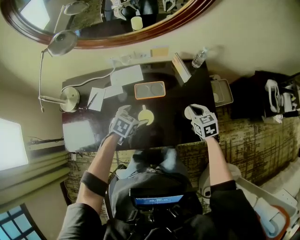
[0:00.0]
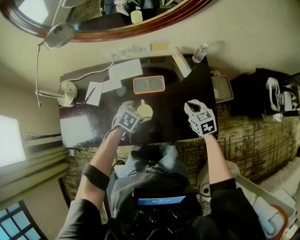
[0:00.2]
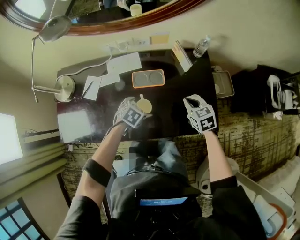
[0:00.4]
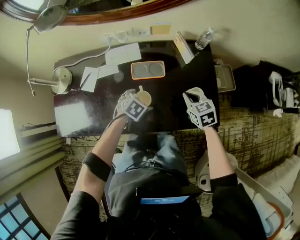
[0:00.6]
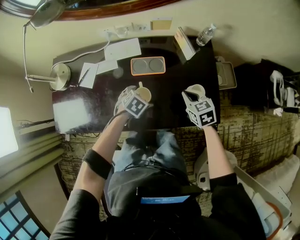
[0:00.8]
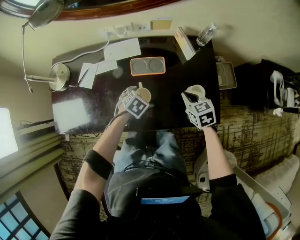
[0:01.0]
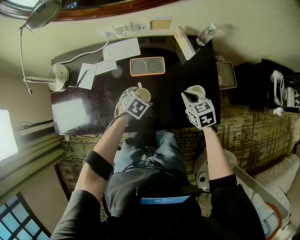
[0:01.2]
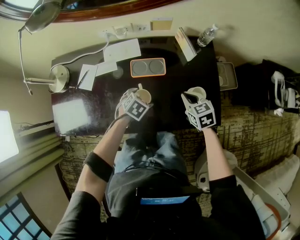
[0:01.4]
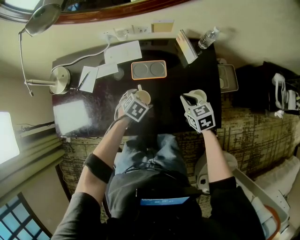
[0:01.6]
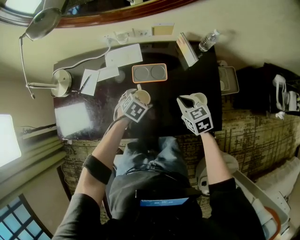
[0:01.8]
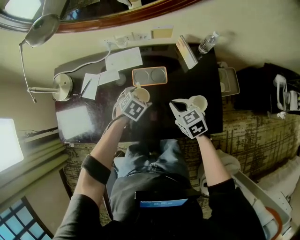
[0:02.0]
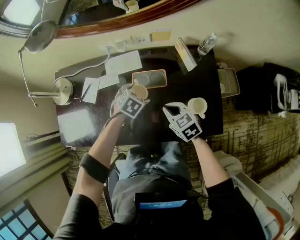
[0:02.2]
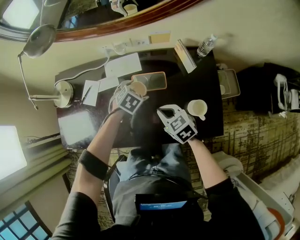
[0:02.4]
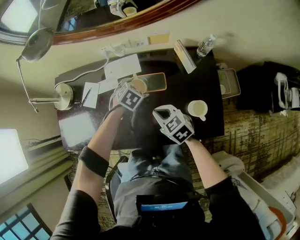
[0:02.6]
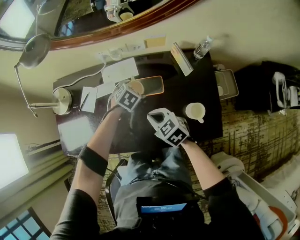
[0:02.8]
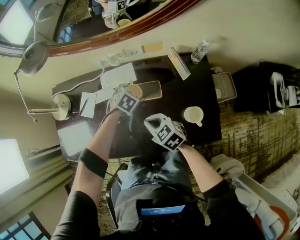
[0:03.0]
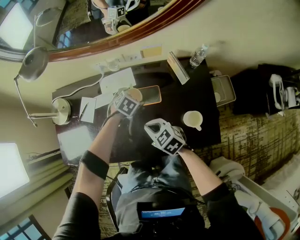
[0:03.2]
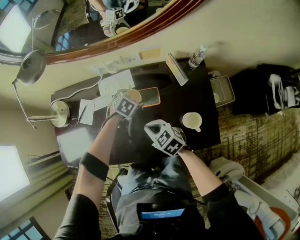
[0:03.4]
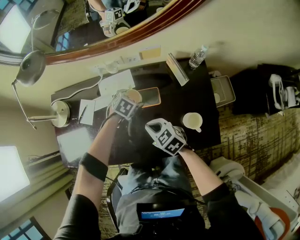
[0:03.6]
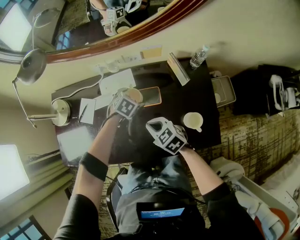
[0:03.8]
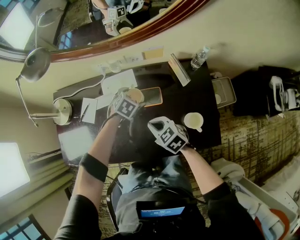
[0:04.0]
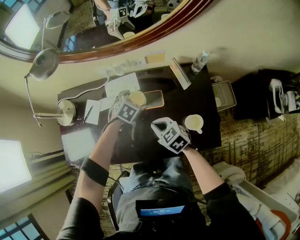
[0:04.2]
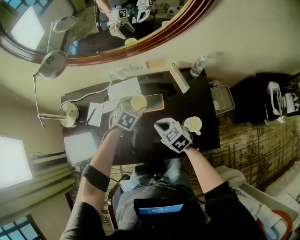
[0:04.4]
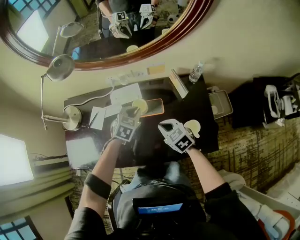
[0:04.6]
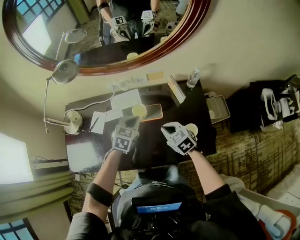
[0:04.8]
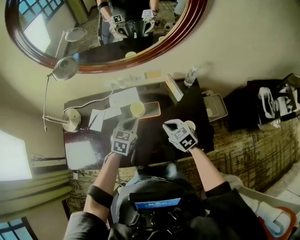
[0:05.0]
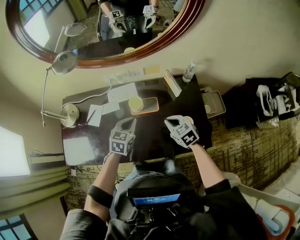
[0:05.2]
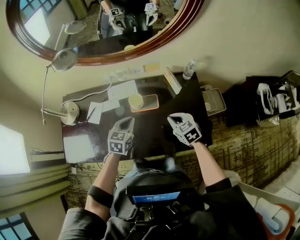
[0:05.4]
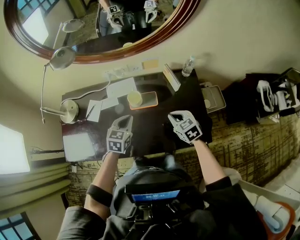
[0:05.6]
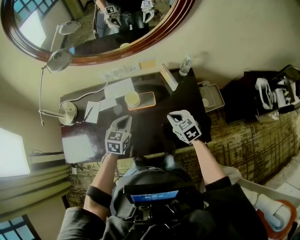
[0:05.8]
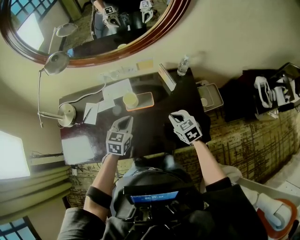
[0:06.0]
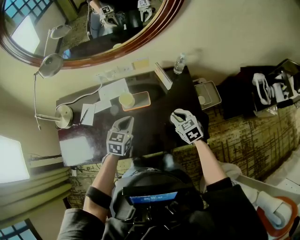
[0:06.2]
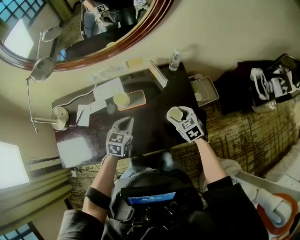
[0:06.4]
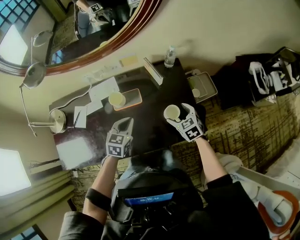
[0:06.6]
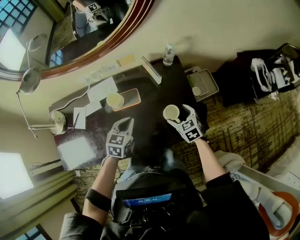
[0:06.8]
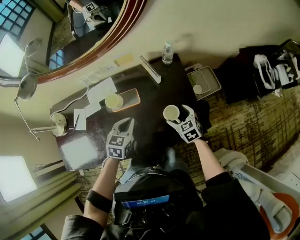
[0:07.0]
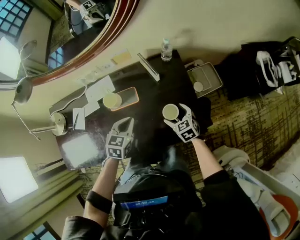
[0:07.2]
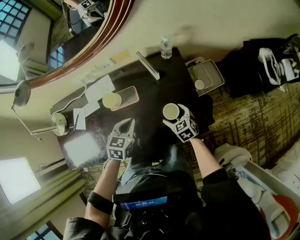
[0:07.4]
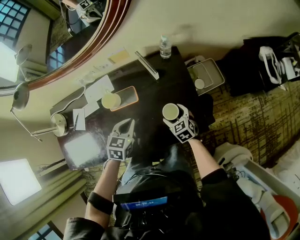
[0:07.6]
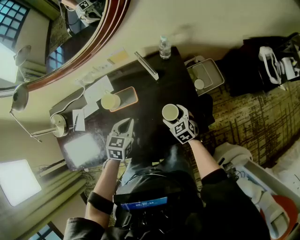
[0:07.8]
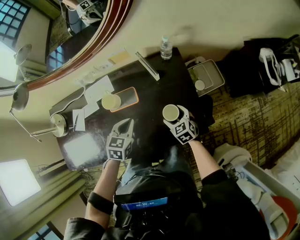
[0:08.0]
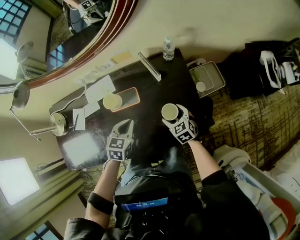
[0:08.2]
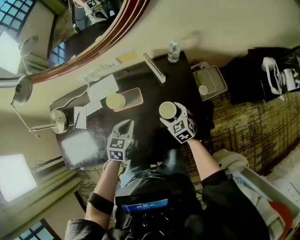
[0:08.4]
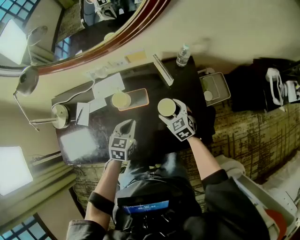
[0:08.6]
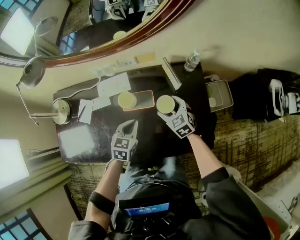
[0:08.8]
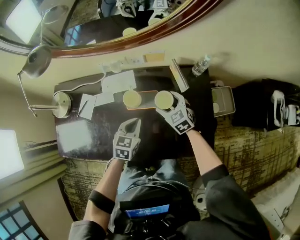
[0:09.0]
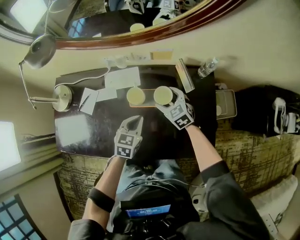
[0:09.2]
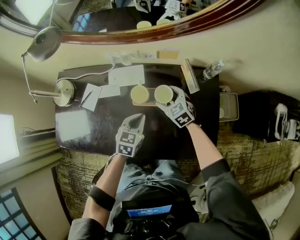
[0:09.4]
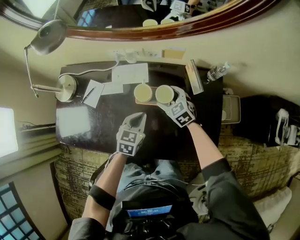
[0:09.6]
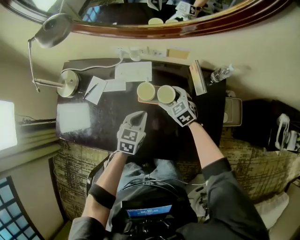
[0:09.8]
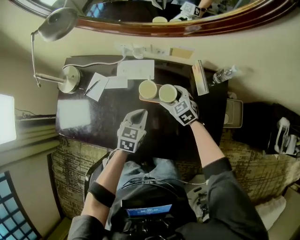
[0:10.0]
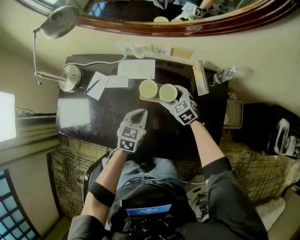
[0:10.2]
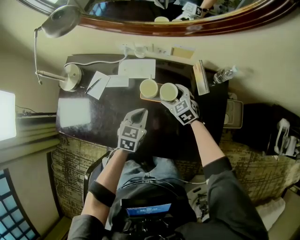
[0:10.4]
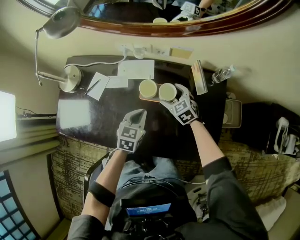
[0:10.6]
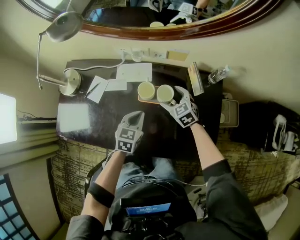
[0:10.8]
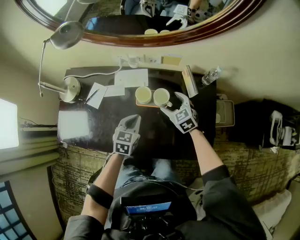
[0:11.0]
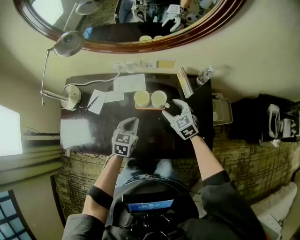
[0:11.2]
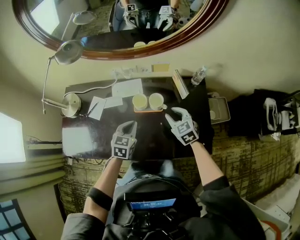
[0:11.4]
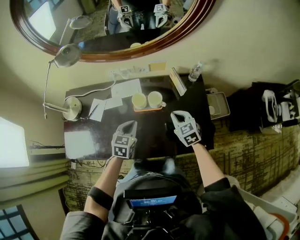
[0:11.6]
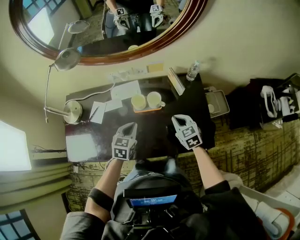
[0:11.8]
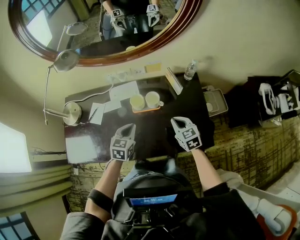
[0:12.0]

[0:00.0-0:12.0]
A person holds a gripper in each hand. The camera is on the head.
0:00.0 to 0:01.6: The left gripper goes approximately 10 cm downward; the right gripper ends up about 5 cm from where it was.
0:01.6 to 0:03.0: The right gripper is displaced to the left by roughly 15 cm, and turns by approximately 20 degrees. The left gripper goes roughly 15 cm forward.
0:03.0 to 0:04.4: The left gripper is displaced upward by some 10 cm.
0:04.4 to 0:06.0: The right gripper shifts about 15 cm to the right. Meanwhile the left gripper shifts approximately 15 cm backward and upward, changes its angle by some 30 degrees, and closes its fingers.
0:06.0 to 0:07.6: The left gripper is displaced to the right and downward by roughly 10 cm, while the right gripper travels downward and to the right by roughly 15 cm, and opens.
0:07.6 to 0:09.0: The left gripper goes roughly 5 cm to the left; the right gripper goes some 20 cm to the left, forward and upward, and changes its angle by about 20 degrees.
0:09.0 to 0:10.4: The right gripper moves to the left, some 5 cm.
0:10.4 to 0:12.0: The left gripper goes about 10 cm upward and backward, while the right gripper heads backward, upward and to the right, covering roughly 20 cm, turns by approximately 30 degrees, and closes.

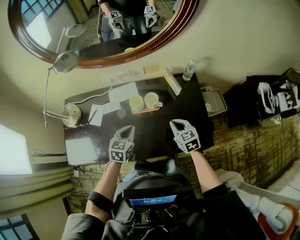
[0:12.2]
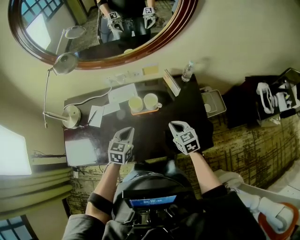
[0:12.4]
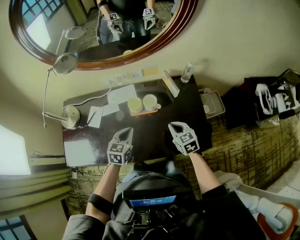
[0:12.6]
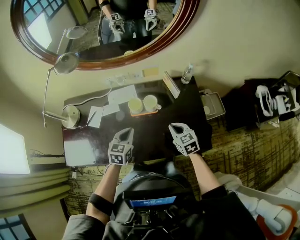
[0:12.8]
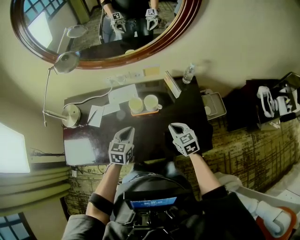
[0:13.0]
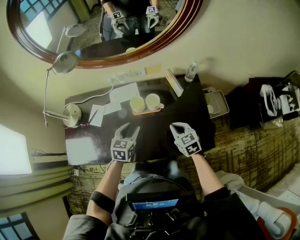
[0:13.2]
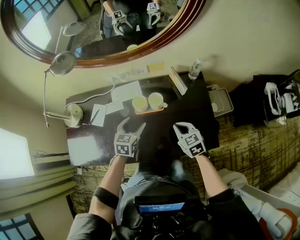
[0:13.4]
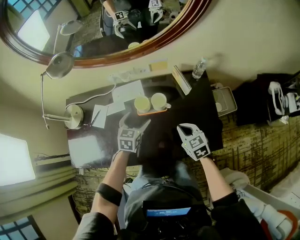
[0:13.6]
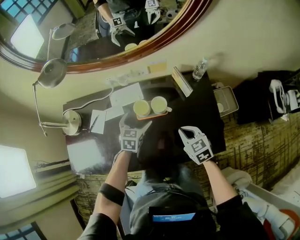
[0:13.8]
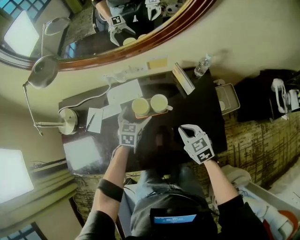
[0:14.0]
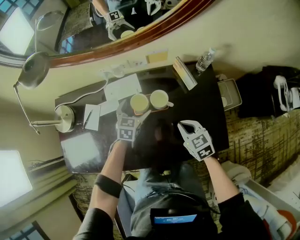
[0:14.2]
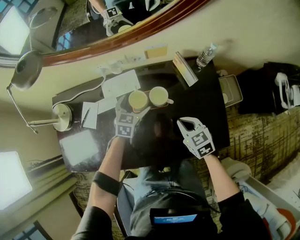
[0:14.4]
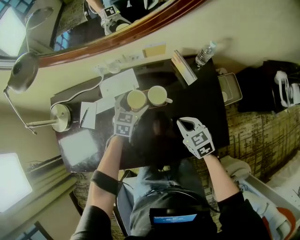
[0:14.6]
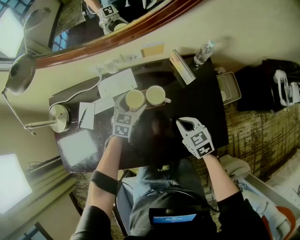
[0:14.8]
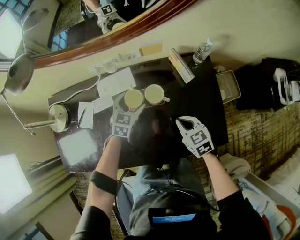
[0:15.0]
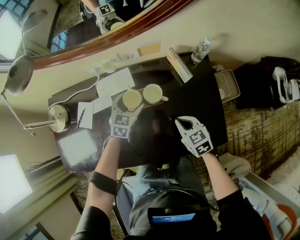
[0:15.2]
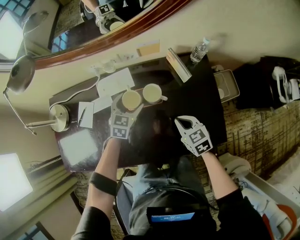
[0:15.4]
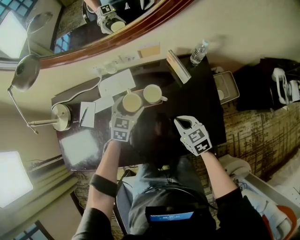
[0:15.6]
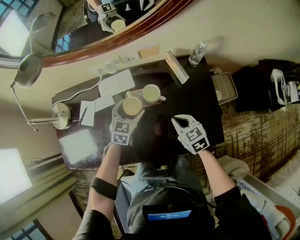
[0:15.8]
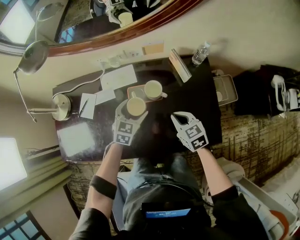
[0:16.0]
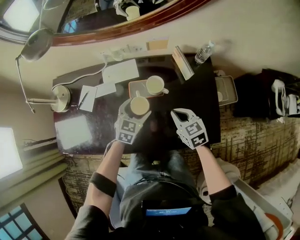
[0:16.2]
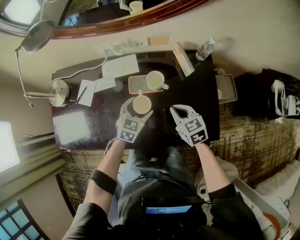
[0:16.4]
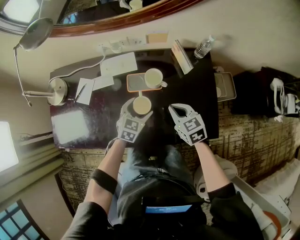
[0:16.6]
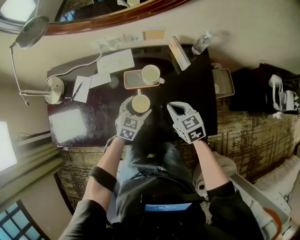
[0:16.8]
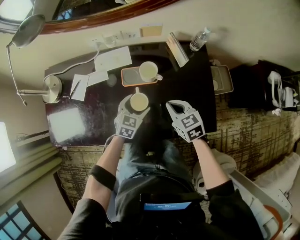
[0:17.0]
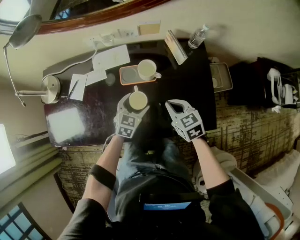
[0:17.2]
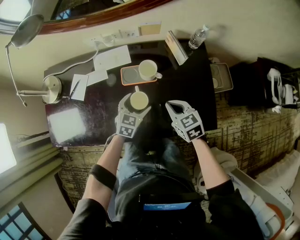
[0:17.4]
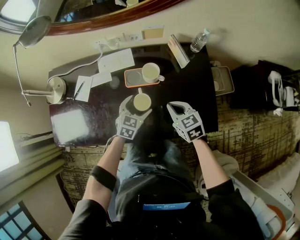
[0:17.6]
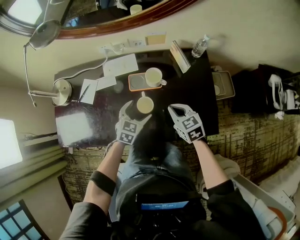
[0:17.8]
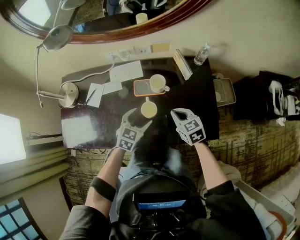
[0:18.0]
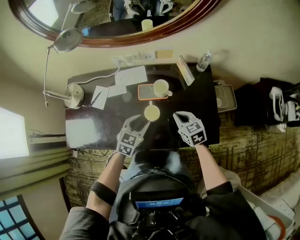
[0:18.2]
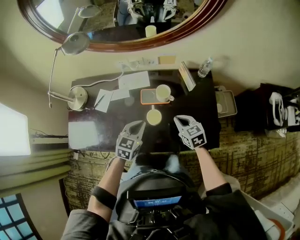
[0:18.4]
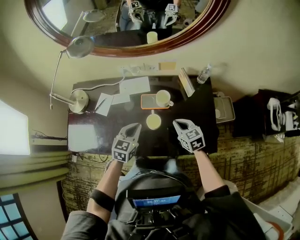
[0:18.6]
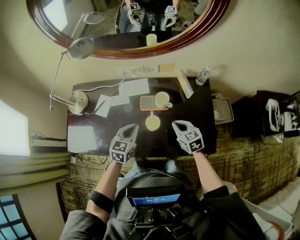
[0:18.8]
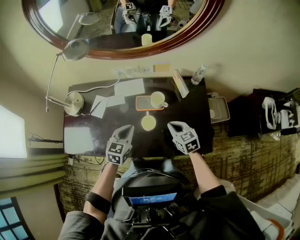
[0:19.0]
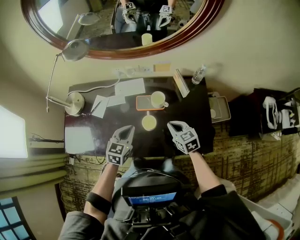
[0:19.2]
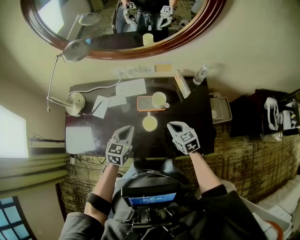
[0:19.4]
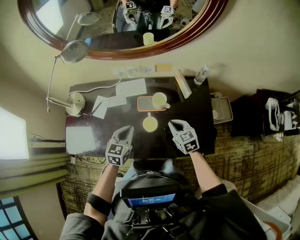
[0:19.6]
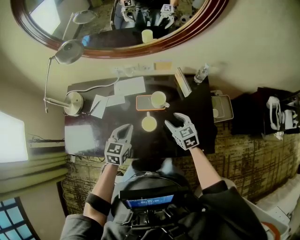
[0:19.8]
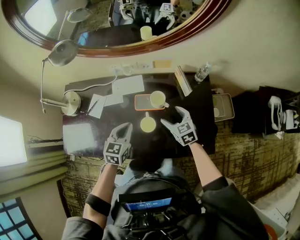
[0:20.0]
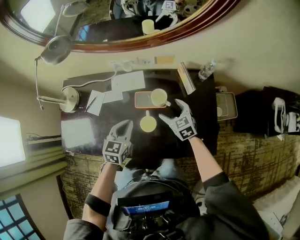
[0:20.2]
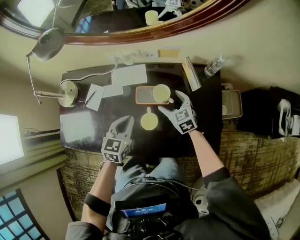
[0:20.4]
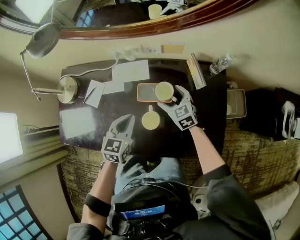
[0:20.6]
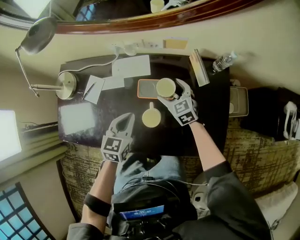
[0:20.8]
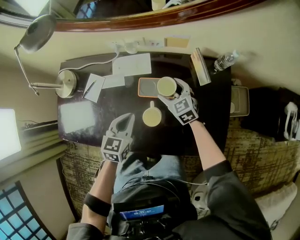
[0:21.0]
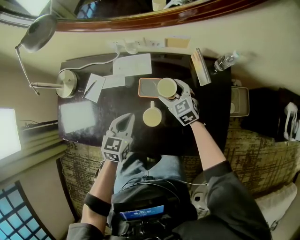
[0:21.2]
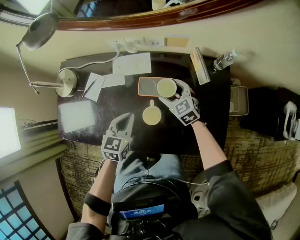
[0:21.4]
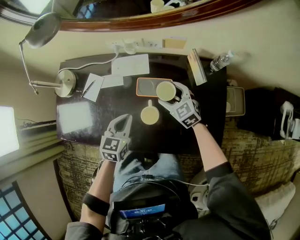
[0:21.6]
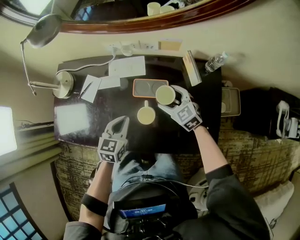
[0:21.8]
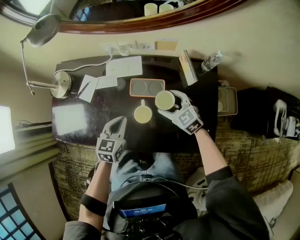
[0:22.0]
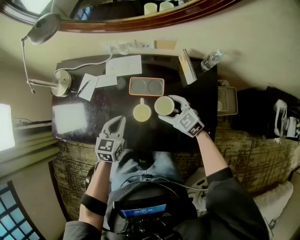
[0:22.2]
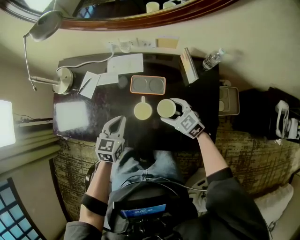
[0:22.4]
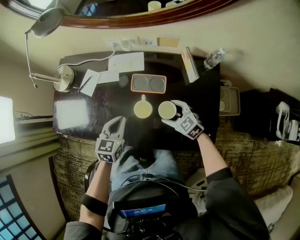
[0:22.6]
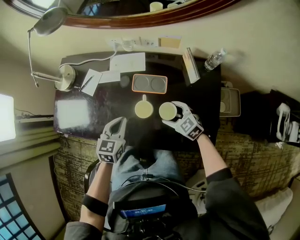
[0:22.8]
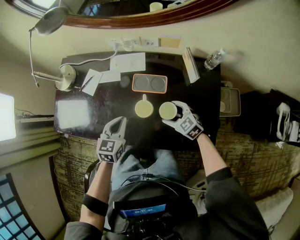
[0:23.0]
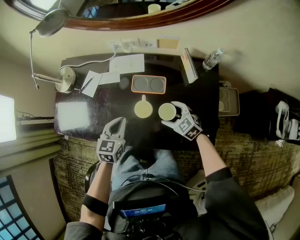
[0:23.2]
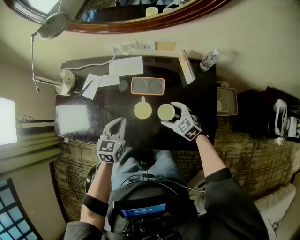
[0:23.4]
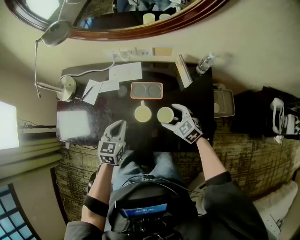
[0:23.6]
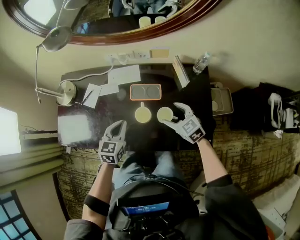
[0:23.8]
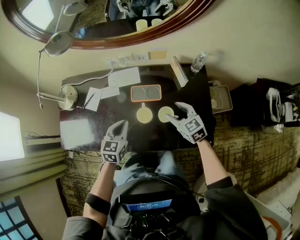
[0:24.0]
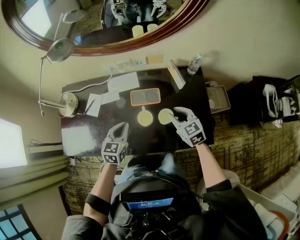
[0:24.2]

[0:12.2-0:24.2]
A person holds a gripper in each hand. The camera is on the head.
0:12.2 to 0:13.8: The left gripper moves forward and downward, about 15 cm, and opens its fingers.
0:13.8 to 0:15.2: The left gripper moves forward, some 5 cm, while the right gripper is displaced downward by roughly 5 cm.
0:15.2 to 0:16.6: The left gripper moves backward, some 15 cm.
0:16.6 to 0:18.2: The left gripper heads upward and backward, covering approximately 10 cm, and closes its fingers.
0:18.2 to 0:19.8: The left gripper moves to the left, roughly 5 cm. Meanwhile the right gripper opens its fingers.
0:19.8 to 0:21.2: The right gripper shifts about 15 cm forward and downward, and opens its fingers. Meanwhile the left gripper goes roughly 5 cm downward.
0:21.2 to 0:22.6: The right gripper travels backward by some 15 cm; the left gripper shifts some 5 cm backward.
0:22.6 to 0:24.2: The right gripper heads upward, covering approximately 15 cm, turns by roughly 30 degrees, and closes up.
